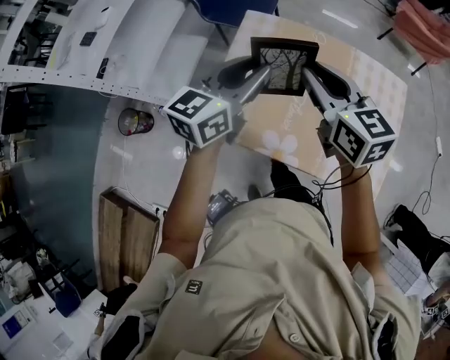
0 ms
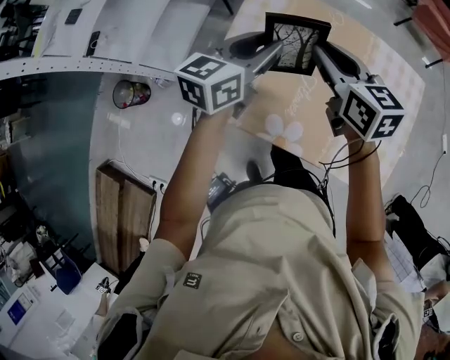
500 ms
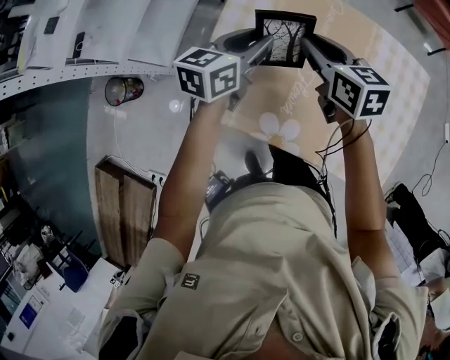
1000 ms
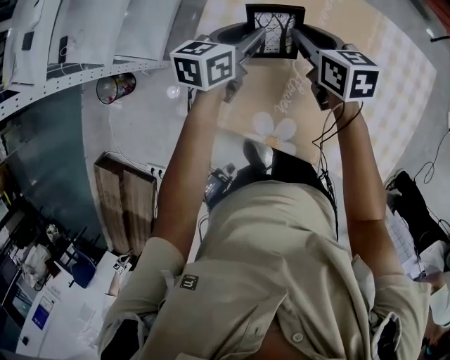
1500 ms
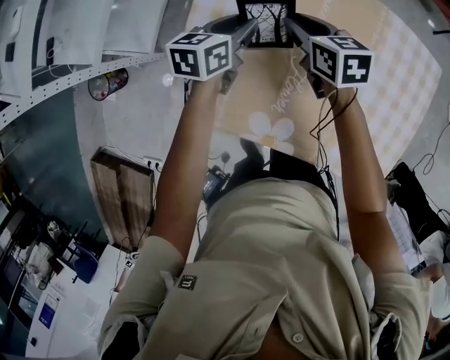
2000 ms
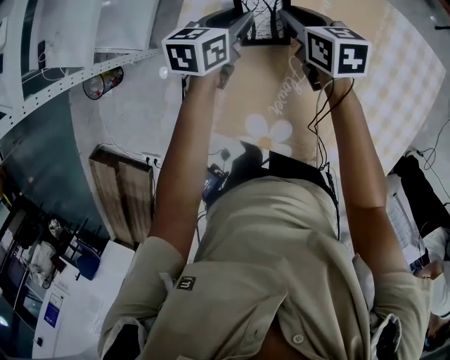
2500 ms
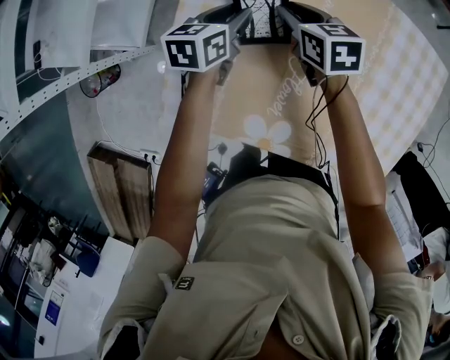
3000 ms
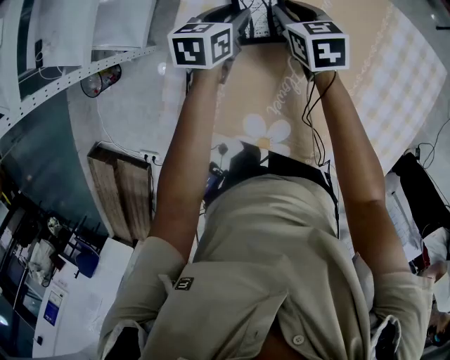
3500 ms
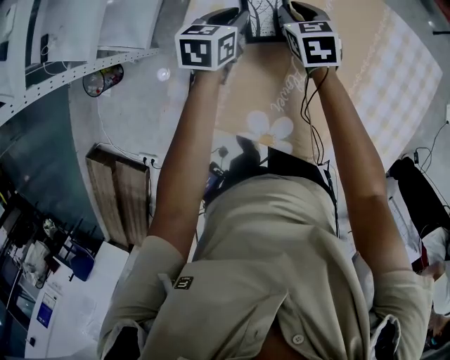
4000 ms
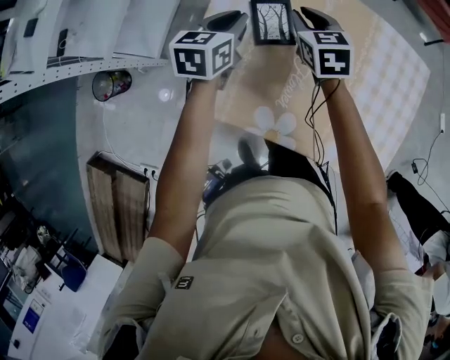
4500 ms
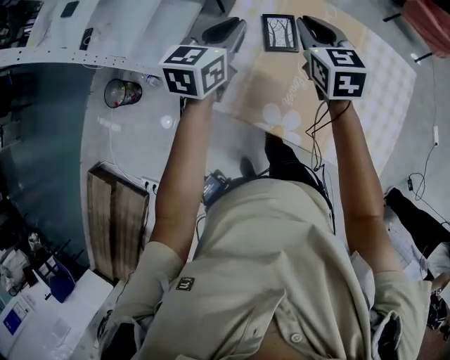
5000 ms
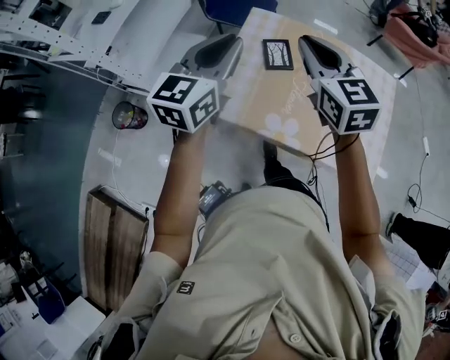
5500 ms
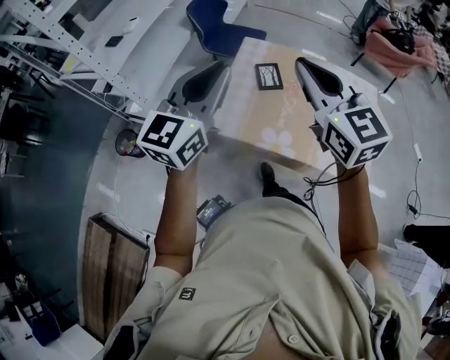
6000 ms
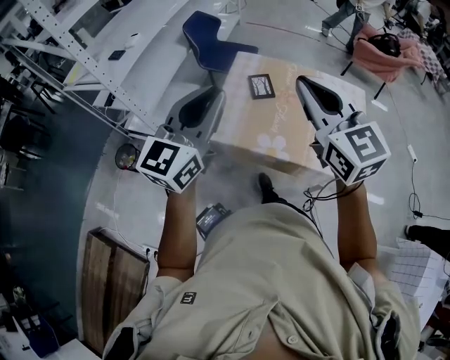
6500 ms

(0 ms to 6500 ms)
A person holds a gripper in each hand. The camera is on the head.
0 ms - 2000 ms: Both grippers travel together downward and forward, about 35 cm. The right gripper changes its angle by approximately 30 degrees; the left gripper swivels approximately 30 degrees.
2000 ms - 4500 ms: The left gripper is displaced upward by approximately 5 cm, while the right gripper rotates about 20 degrees.
4500 ms - 6500 ms: The right gripper is displaced upward and backward by some 60 cm, and angles its fingers upward, by about 40 degrees, while the left gripper is displaced backward and upward by approximately 50 cm, and points its fingers about 40 degrees further upward.

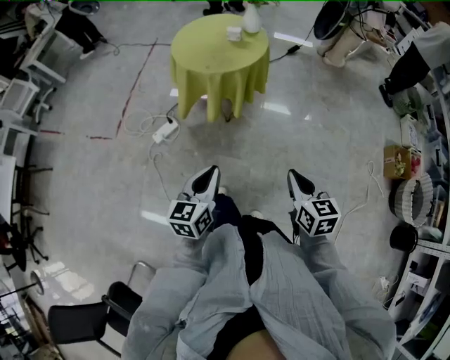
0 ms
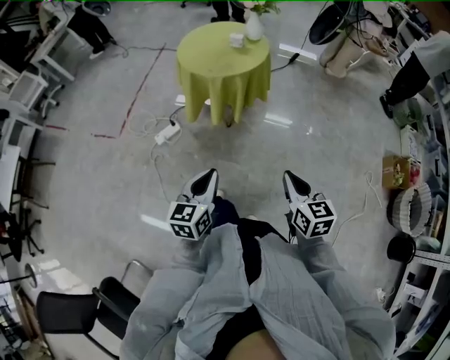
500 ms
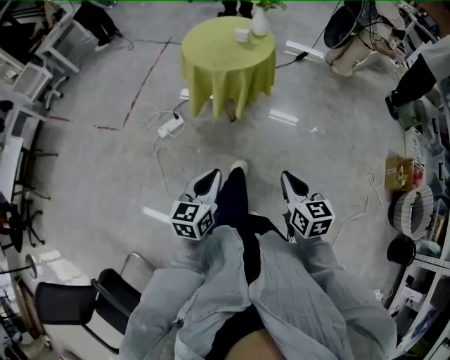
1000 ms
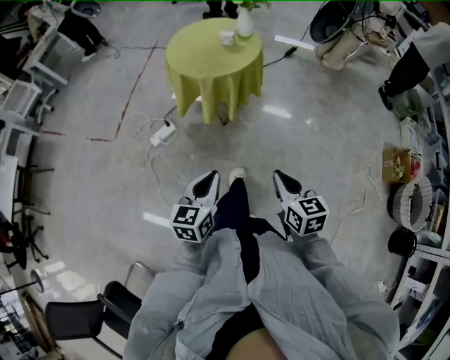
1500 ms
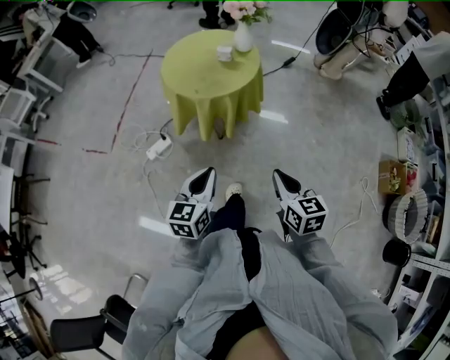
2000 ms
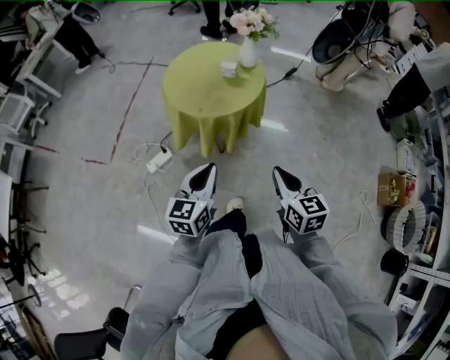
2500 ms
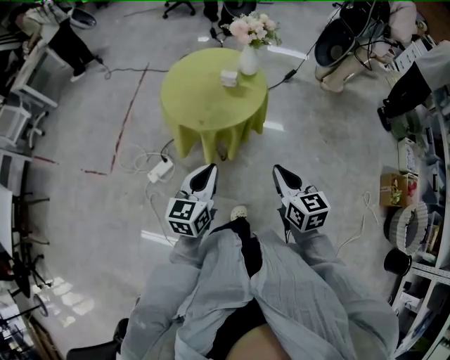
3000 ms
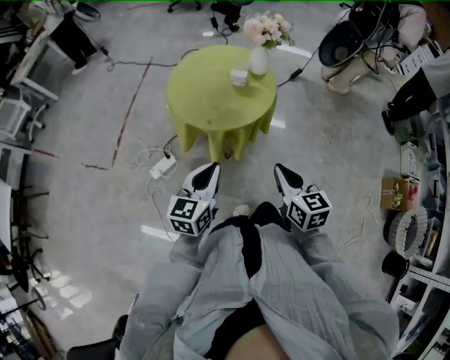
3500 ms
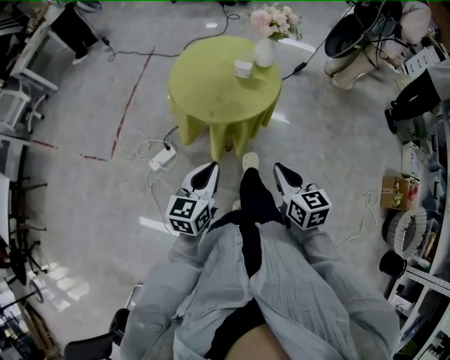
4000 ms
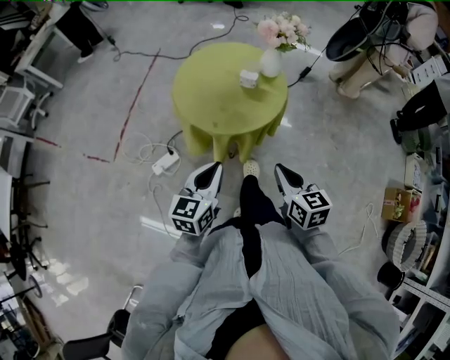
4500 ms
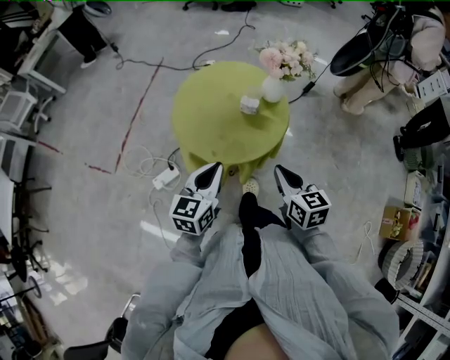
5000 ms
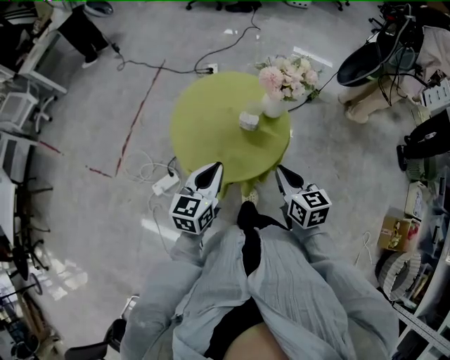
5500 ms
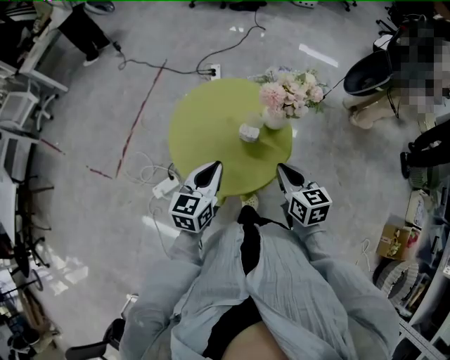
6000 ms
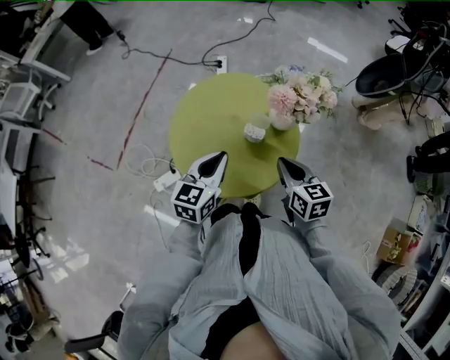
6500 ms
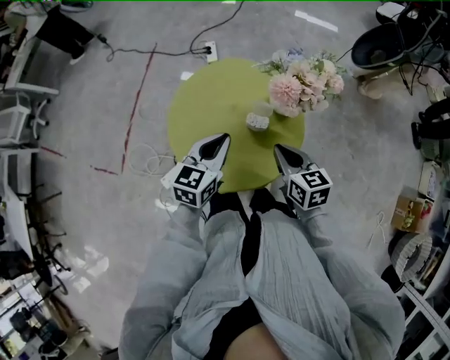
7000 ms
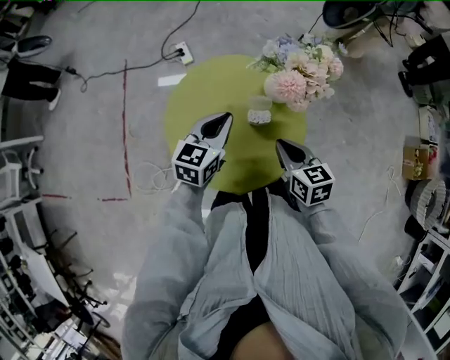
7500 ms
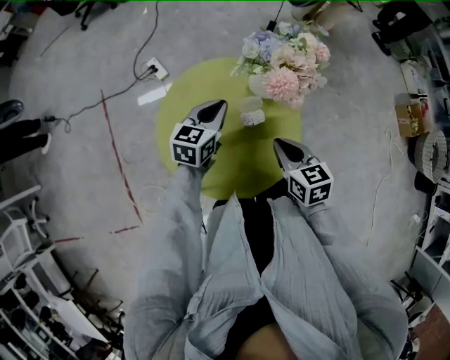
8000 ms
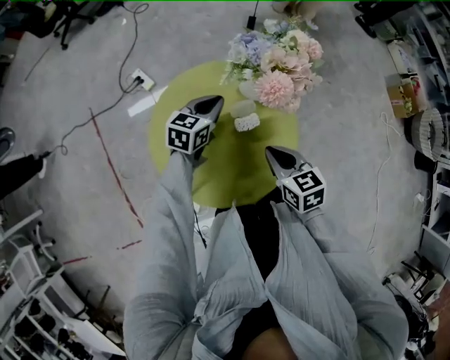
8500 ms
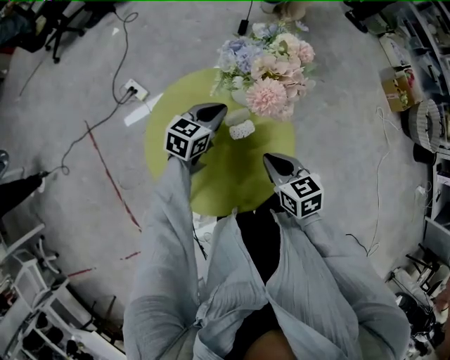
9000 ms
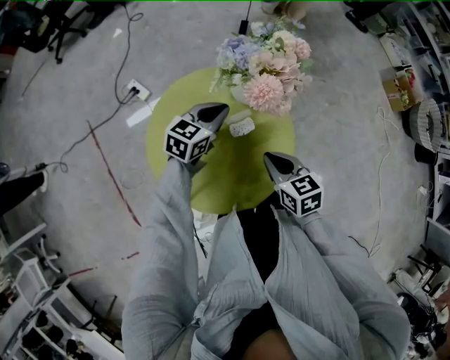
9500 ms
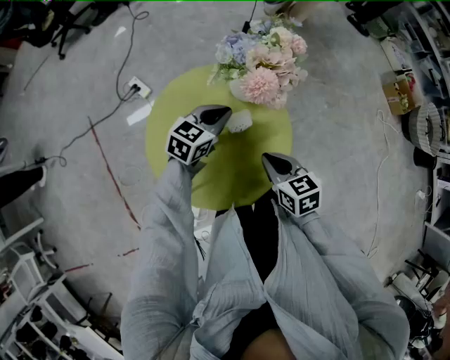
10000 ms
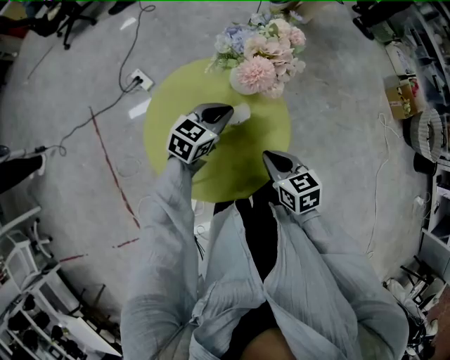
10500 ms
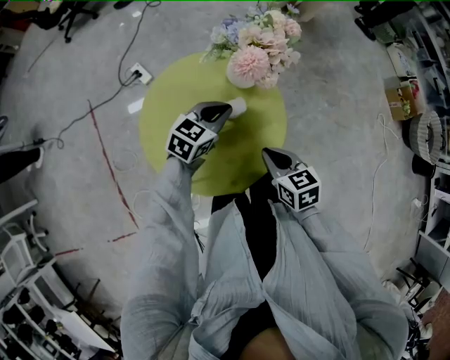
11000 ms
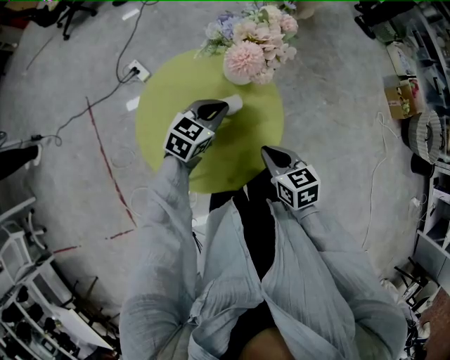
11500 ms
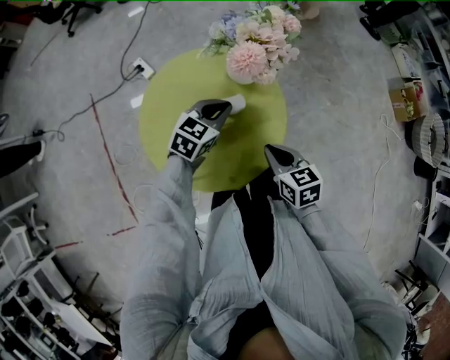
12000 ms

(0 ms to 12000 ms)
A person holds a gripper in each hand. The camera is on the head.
0 ms - 2000 ms: The grippers both shift forward by roughly 10 cm.
2000 ms - 4000 ms: The right gripper goes roughly 15 cm forward and to the left. The left gripper goes about 15 cm forward.
4000 ms - 6000 ms: Both grippers travel together forward, some 25 cm.
6000 ms - 8000 ms: The right gripper moves approximately 10 cm, and turns by some 30 degrees. Meanwhile the left gripper changes place by about 20 cm, and swivels approximately 40 degrees.
8000 ms - 10000 ms: The left gripper travels to the right by about 5 cm, and swivels some 30 degrees.
10000 ms - 12000 ms: There are only small adjustments of the grippers.

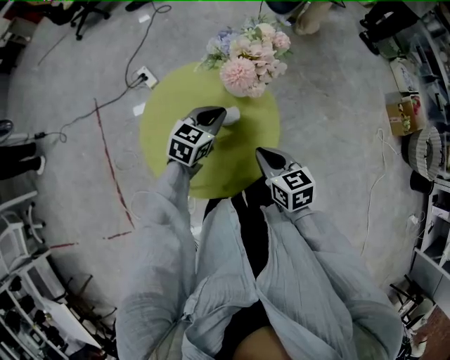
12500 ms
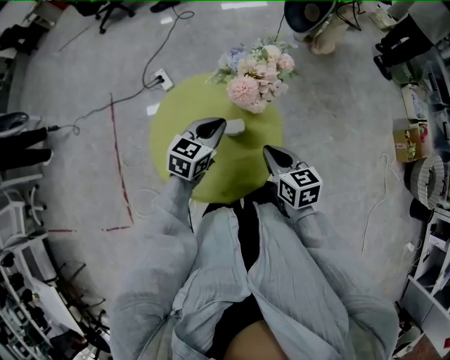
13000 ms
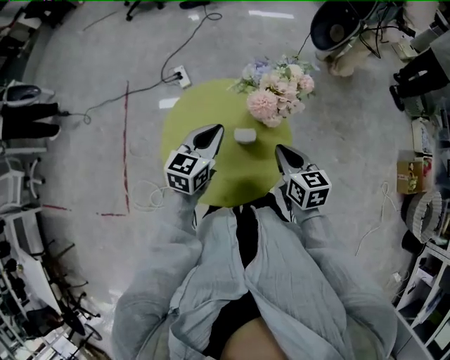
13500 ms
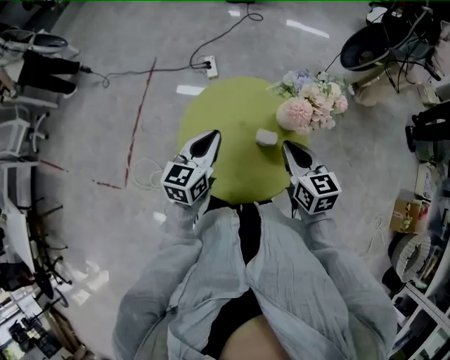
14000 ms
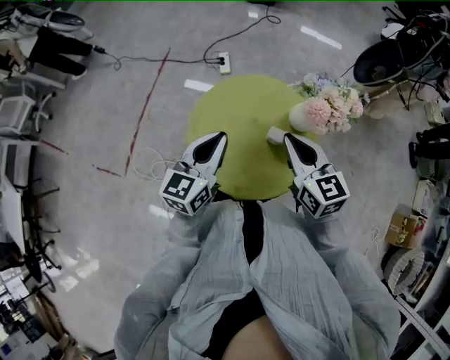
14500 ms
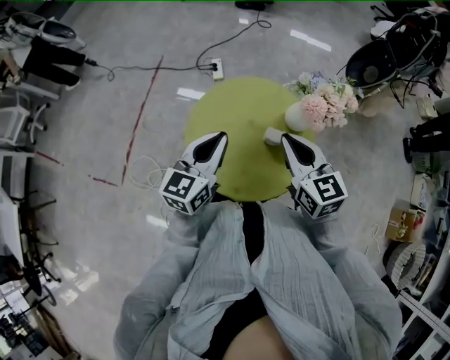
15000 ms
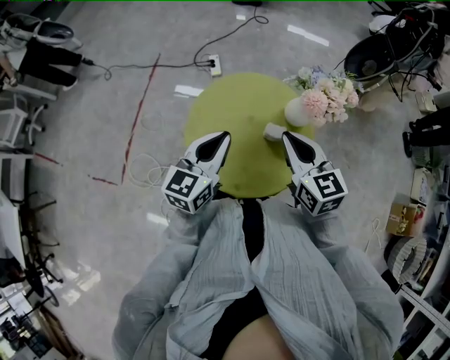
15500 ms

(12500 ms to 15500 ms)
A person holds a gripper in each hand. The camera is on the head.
12500 ms - 14000 ms: The right gripper moves upward, approximately 10 cm, and rotates some 20 degrees, while the left gripper moves about 20 cm, and swivels approximately 50 degrees.
14000 ms - 15500 ms: The right gripper goes some 10 cm upward and to the left. Meanwhile the left gripper ends up about 5 cm from where it was.

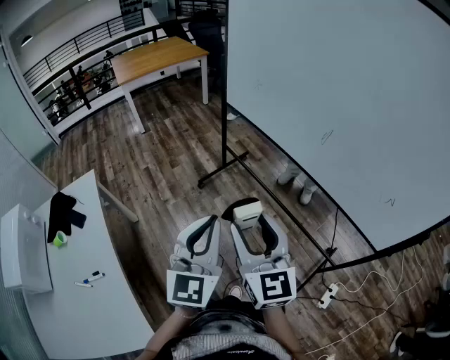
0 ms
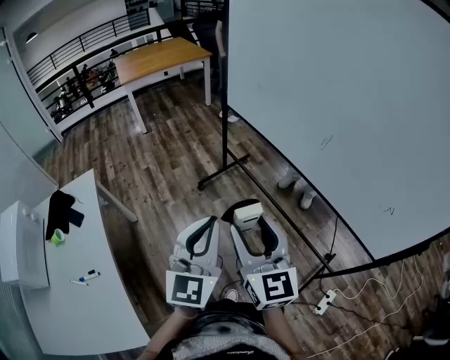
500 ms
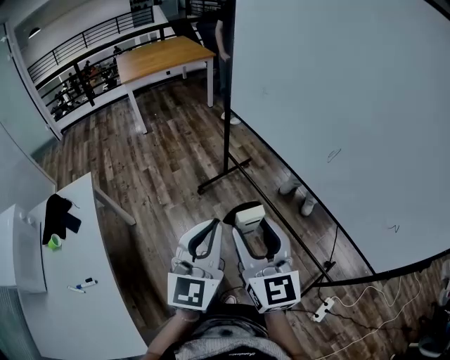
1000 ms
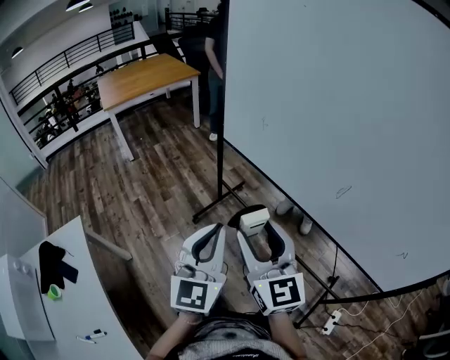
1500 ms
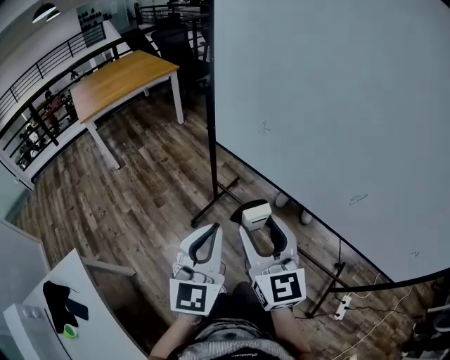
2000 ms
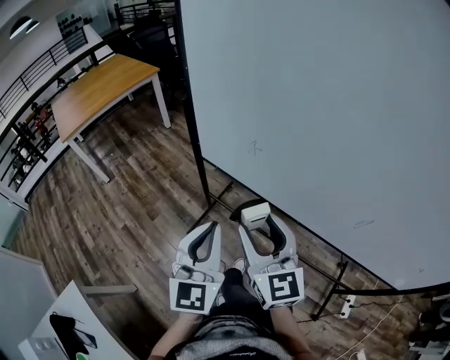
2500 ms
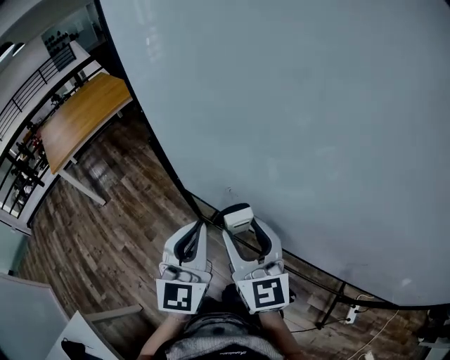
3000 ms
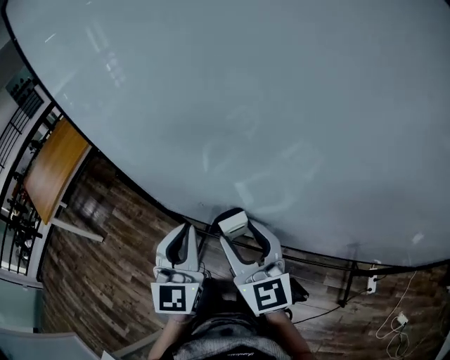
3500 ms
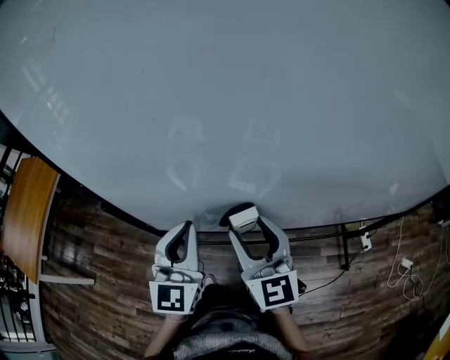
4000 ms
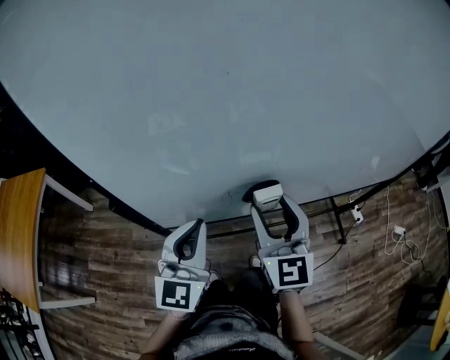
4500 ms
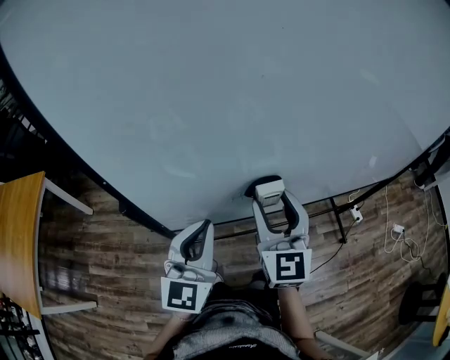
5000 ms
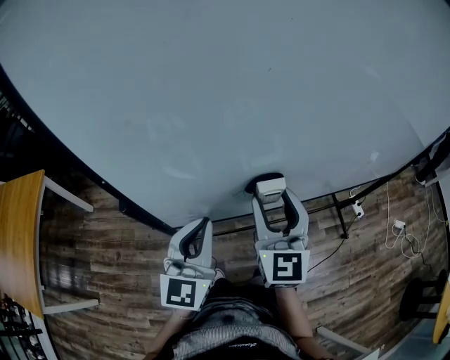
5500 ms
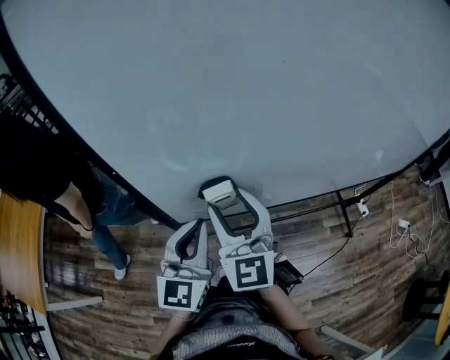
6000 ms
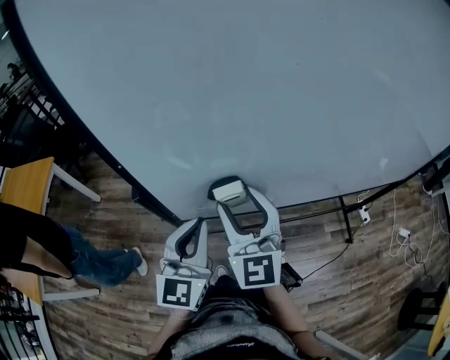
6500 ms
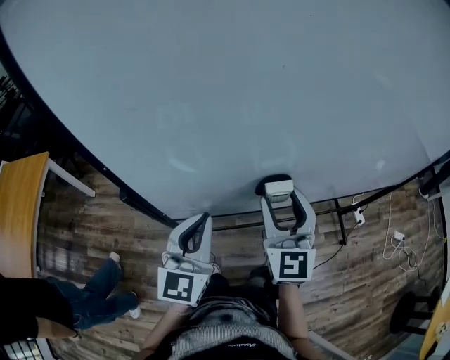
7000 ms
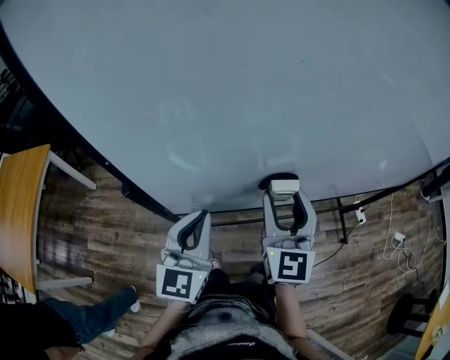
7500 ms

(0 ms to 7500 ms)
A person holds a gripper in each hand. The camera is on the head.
0 ms - 2000 ms: Both grippers travel together forward, approximately 35 cm.
2000 ms - 4000 ms: The left gripper shifts by about 40 cm, and changes its angle by some 40 degrees. The right gripper ends up about 30 cm from where it was, and changes its angle by approximately 40 degrees.
4000 ms - 5500 ms: The left gripper heads to the left, covering roughly 5 cm; the right gripper changes its angle by some 30 degrees.
5500 ms - 7500 ms: The right gripper moves about 10 cm to the left and comes back.
